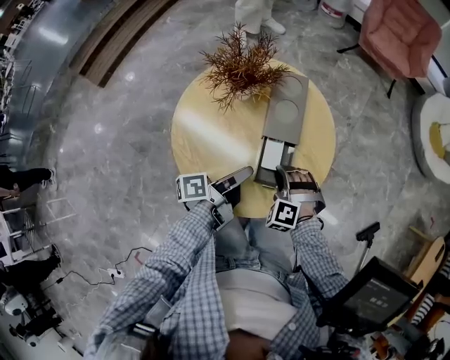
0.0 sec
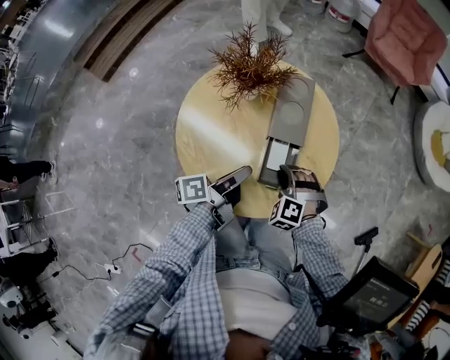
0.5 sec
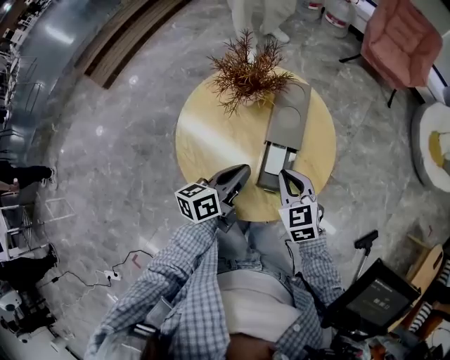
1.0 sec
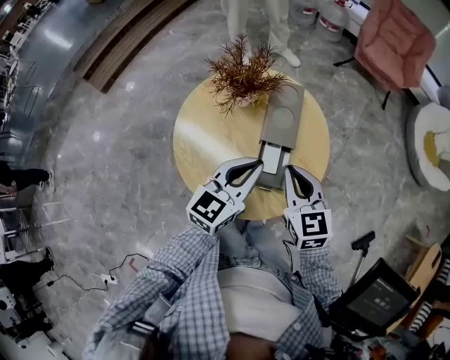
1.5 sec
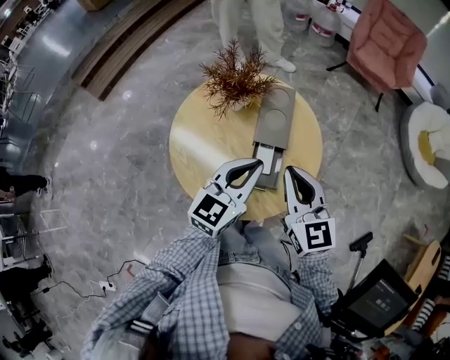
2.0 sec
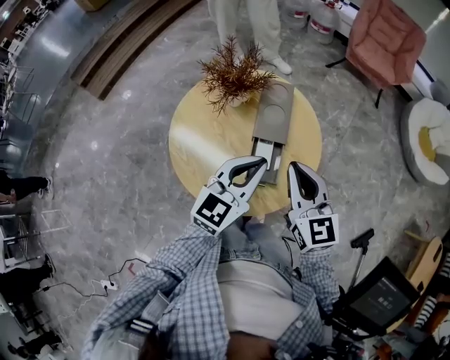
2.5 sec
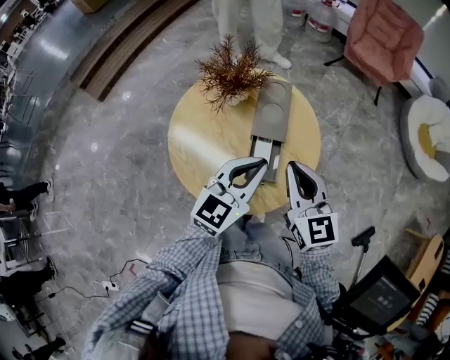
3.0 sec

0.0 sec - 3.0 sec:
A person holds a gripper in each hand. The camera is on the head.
0.0 sec - 1.5 sec: The grippers both shift upward by roughly 15 cm. The left gripper twists roughly 80 degrees clockwise, seen from behind, and closes up. Meanwhile the right gripper rotates around the line of its fingers by about 60 degrees, clockwise from behind.

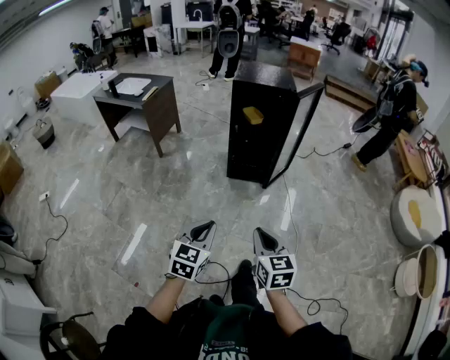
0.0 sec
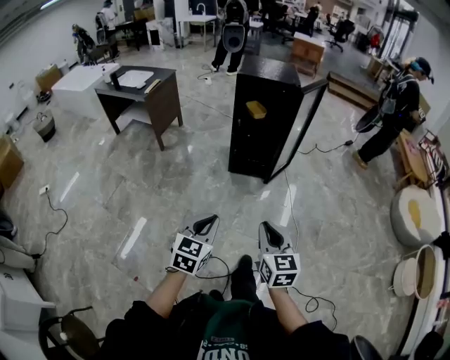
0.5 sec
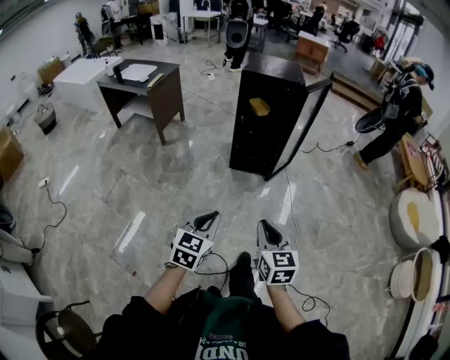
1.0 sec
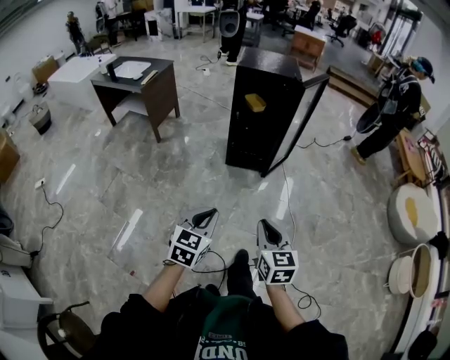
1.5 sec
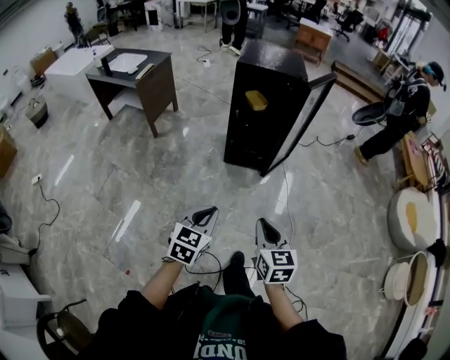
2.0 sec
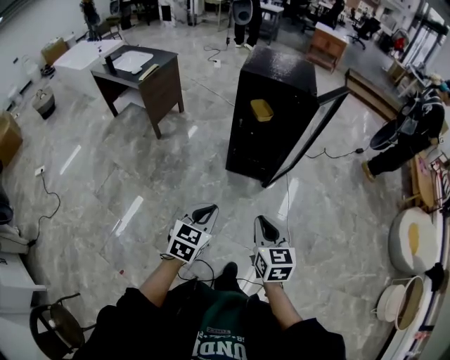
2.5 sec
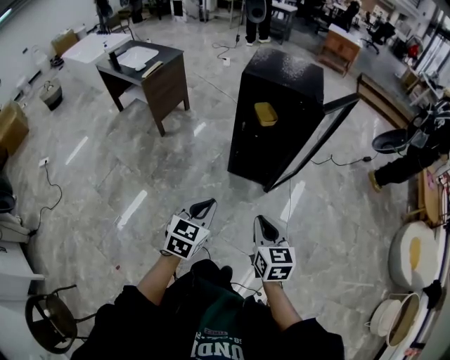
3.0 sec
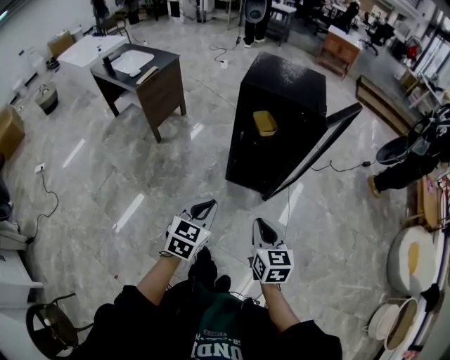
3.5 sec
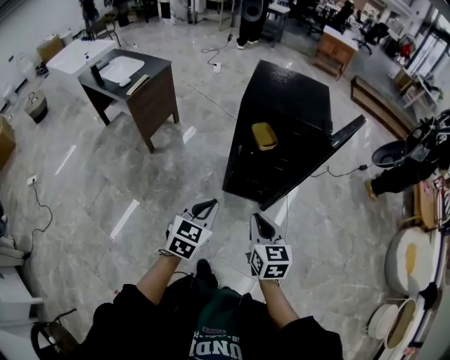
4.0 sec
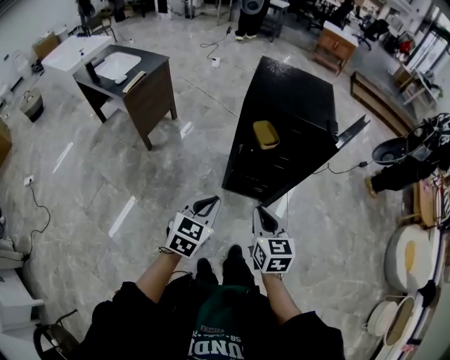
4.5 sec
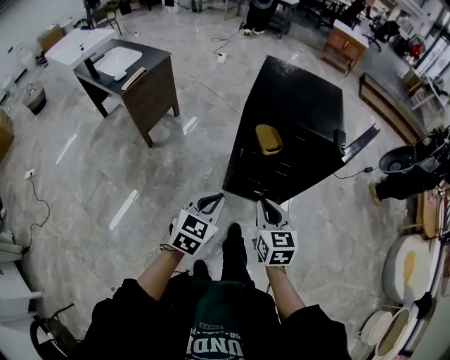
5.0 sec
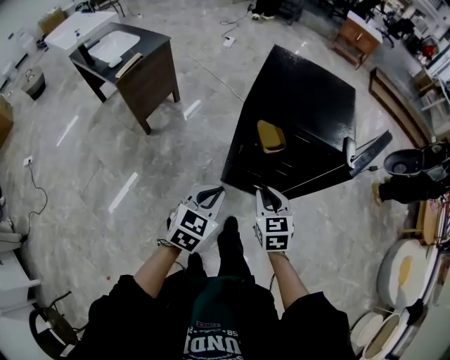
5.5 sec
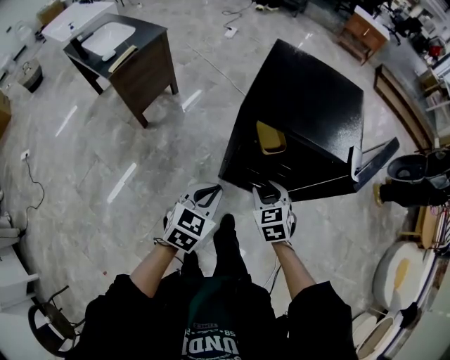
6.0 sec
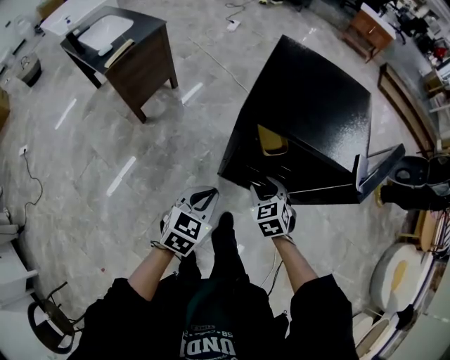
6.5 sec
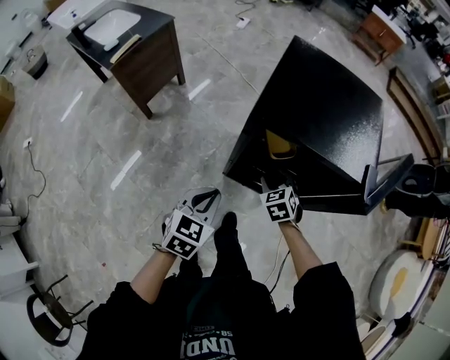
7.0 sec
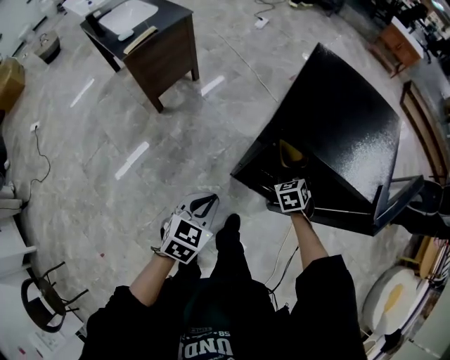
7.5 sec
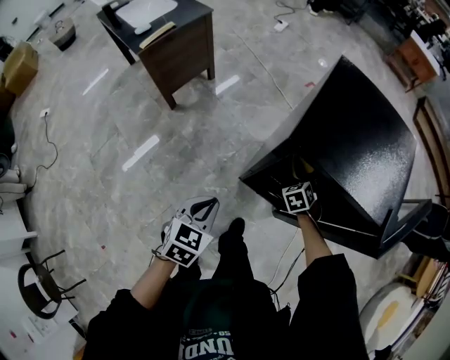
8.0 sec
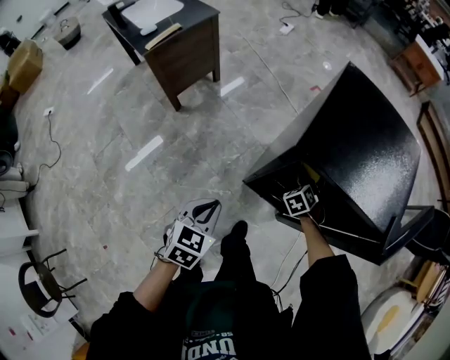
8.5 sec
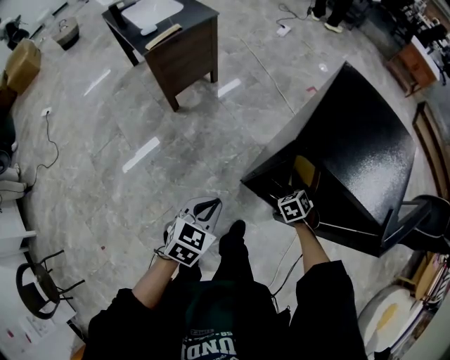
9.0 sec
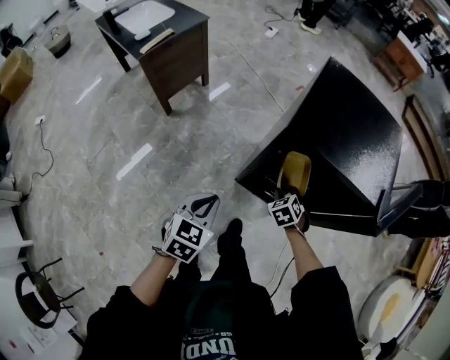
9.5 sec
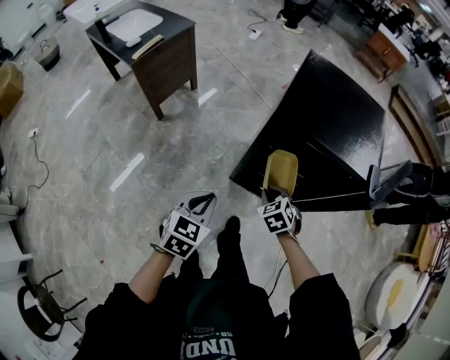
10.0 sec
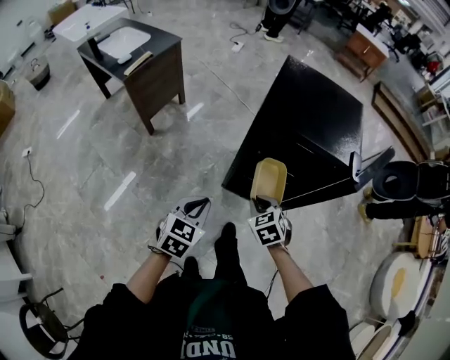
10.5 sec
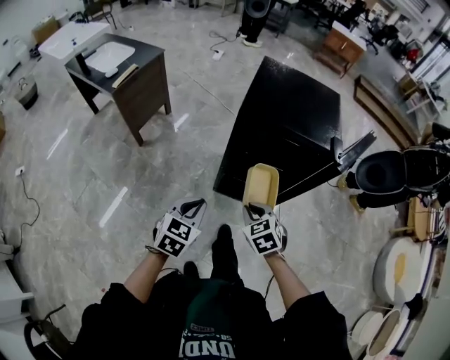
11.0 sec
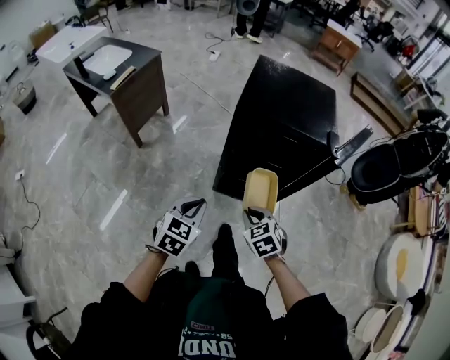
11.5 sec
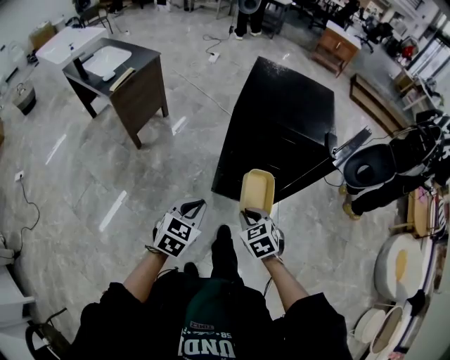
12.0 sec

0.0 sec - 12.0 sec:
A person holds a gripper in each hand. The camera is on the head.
0.0 sec - 2.0 sec: Both grippers move forward, about 10 cm.
2.0 sec - 4.0 sec: Both grippers move forward, approximately 35 cm.
4.0 sec - 6.0 sec: The left gripper travels forward by about 20 cm. The right gripper shifts roughly 30 cm forward and downward, rotates roughly 30 degrees, and opens up.
6.0 sec - 8.0 sec: The left gripper is displaced to the left and downward by some 10 cm; the right gripper is displaced forward and downward by some 25 cm, and swivels some 20 degrees.
8.0 sec - 10.0 sec: The left gripper heads backward, covering approximately 5 cm. The right gripper travels backward and upward by about 20 cm, and closes up.
10.0 sec - 12.0 sec: The left gripper travels backward by approximately 5 cm, while the right gripper heads backward and upward, covering about 15 cm.

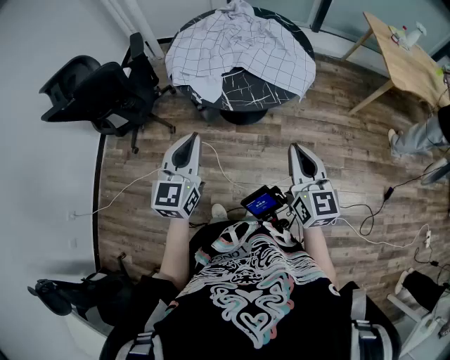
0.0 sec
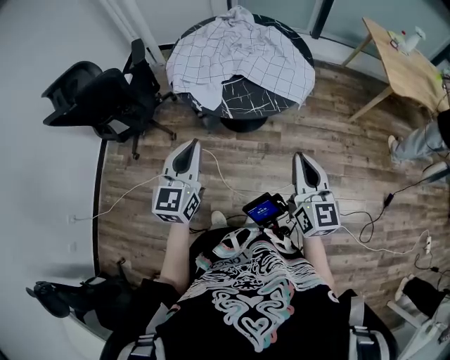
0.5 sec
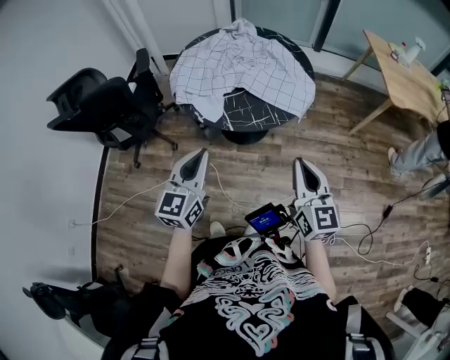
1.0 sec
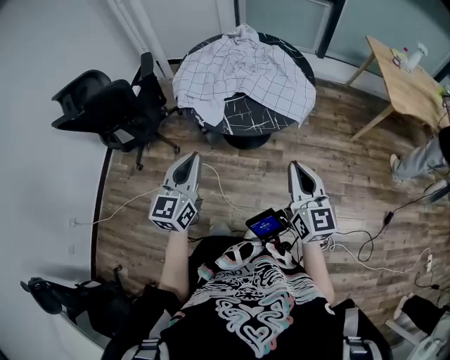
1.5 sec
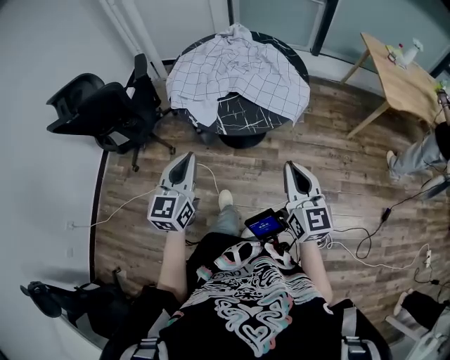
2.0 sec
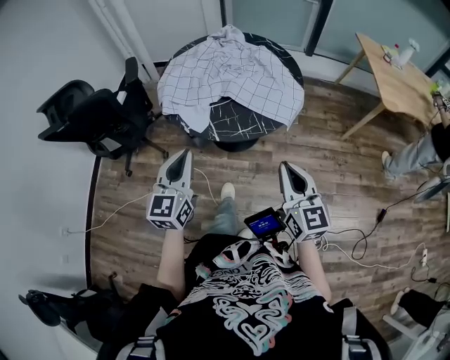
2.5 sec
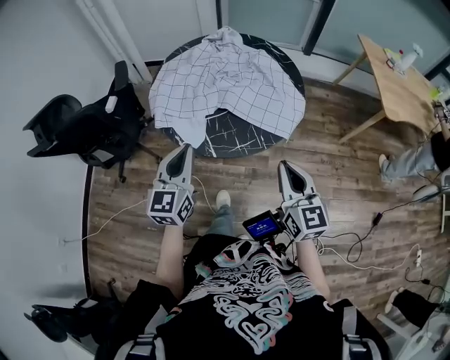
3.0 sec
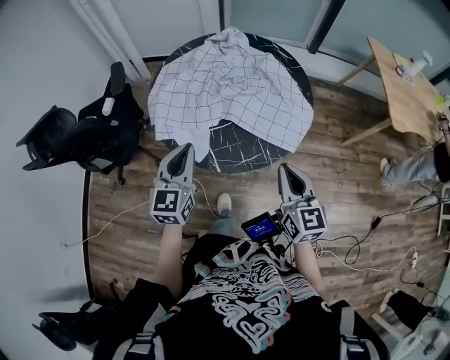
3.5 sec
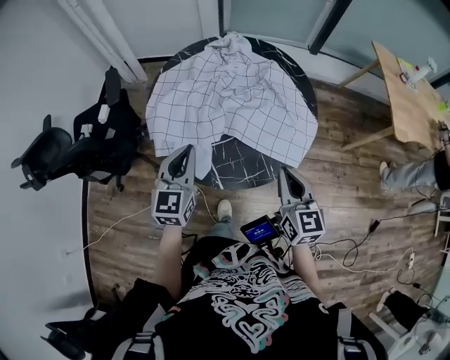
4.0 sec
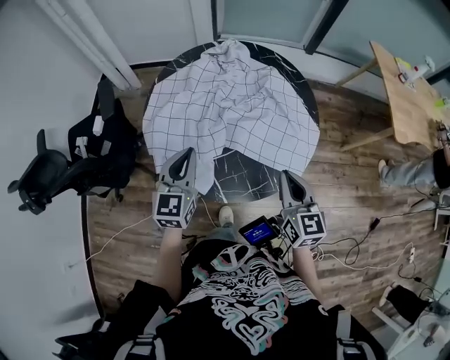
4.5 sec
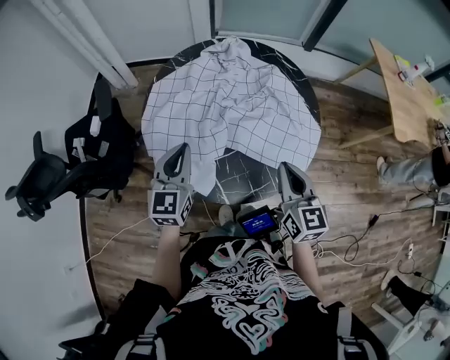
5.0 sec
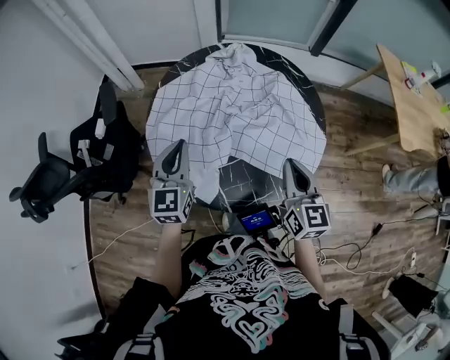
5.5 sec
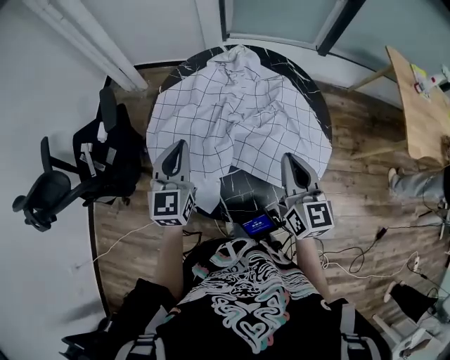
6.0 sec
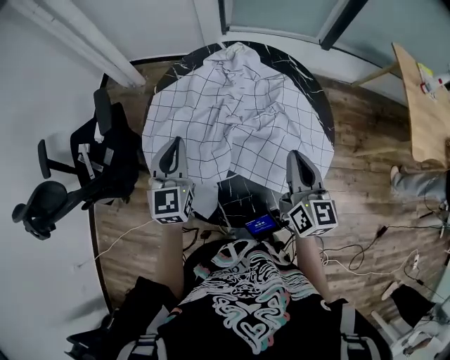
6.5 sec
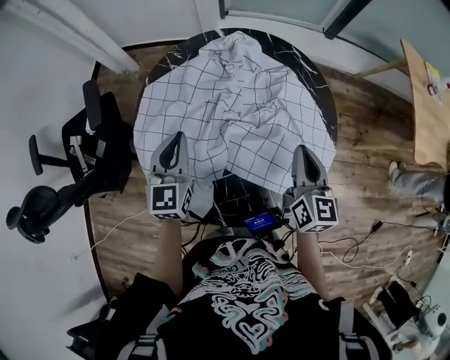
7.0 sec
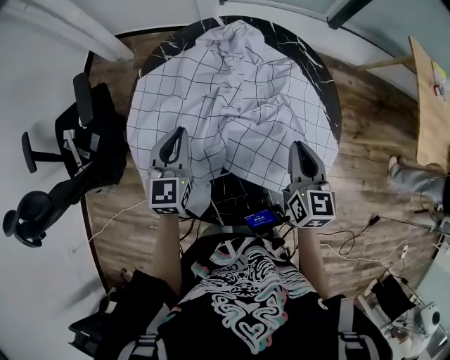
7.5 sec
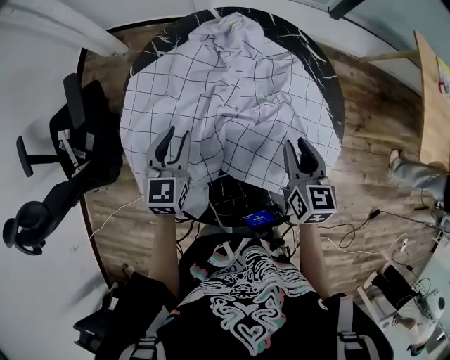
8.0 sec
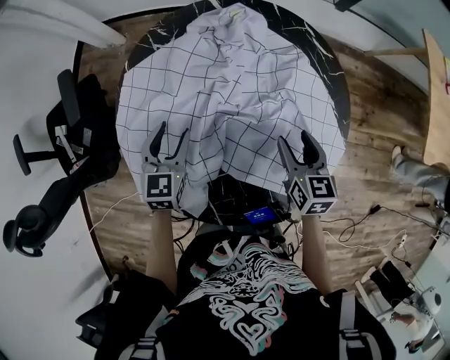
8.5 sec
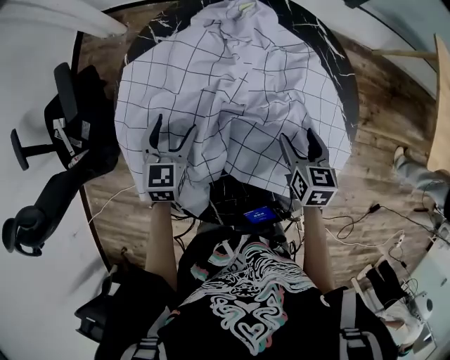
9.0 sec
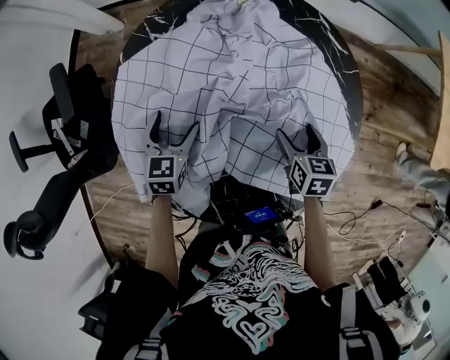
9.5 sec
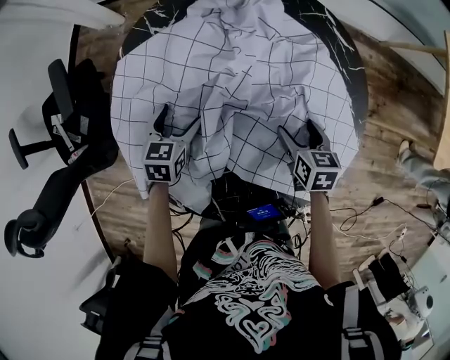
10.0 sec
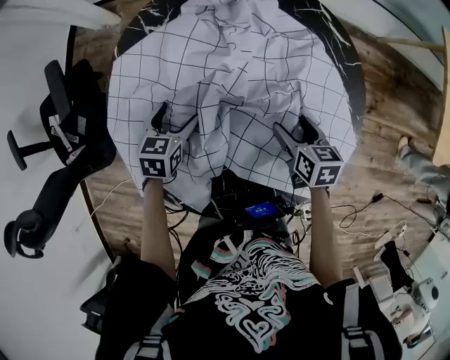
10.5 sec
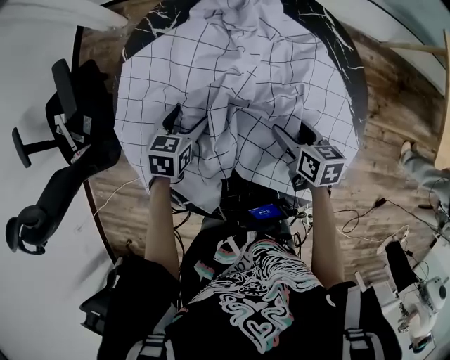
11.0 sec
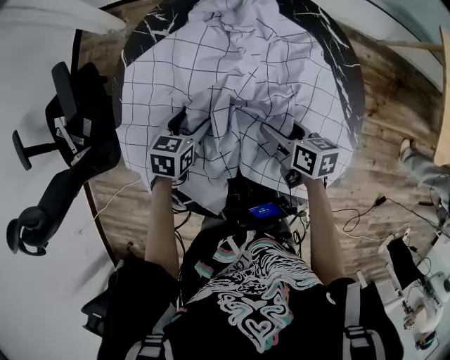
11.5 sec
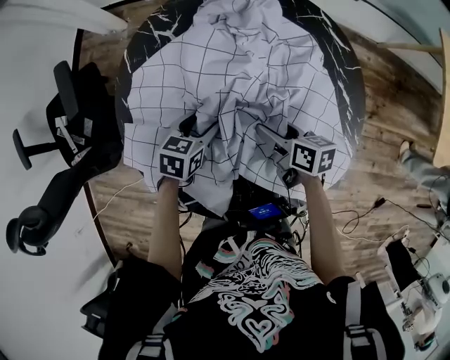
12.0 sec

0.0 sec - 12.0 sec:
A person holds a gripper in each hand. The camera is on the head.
0.0 sec - 2.0 sec: The grippers move only a little.
2.0 sec - 4.0 sec: Both grippers move forward, some 30 cm.
4.0 sec - 6.0 sec: The grippers both shift forward by some 15 cm.
6.0 sec - 8.0 sec: Both grippers travel together downward and forward, about 15 cm. The right gripper changes its angle by some 20 degrees.
8.0 sec - 10.0 sec: Both grippers move downward, roughly 15 cm. The right gripper rotates roughly 20 degrees, and opens. The left gripper swivels about 20 degrees, and opens its fingers.
10.0 sec - 12.0 sec: The right gripper goes some 10 cm to the left, and changes its angle by roughly 30 degrees. The left gripper shifts roughly 5 cm to the right, and closes its fingers.
